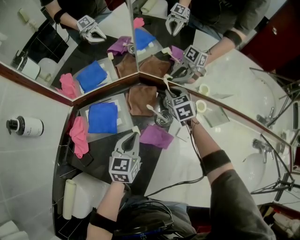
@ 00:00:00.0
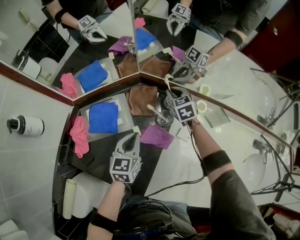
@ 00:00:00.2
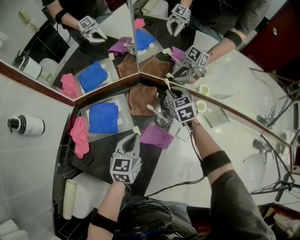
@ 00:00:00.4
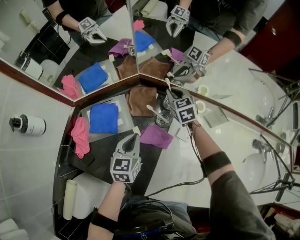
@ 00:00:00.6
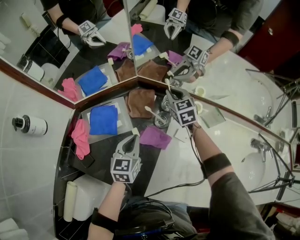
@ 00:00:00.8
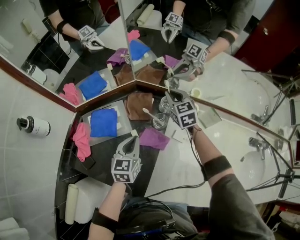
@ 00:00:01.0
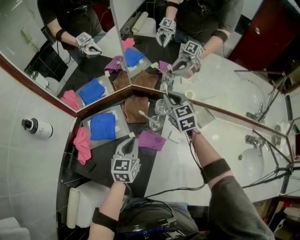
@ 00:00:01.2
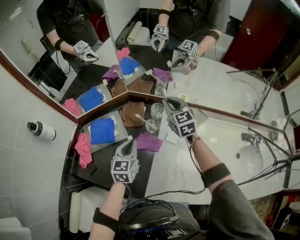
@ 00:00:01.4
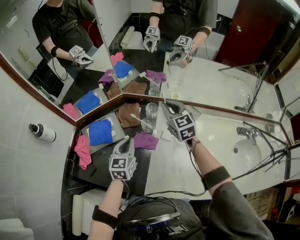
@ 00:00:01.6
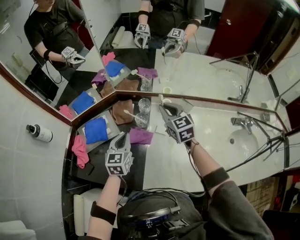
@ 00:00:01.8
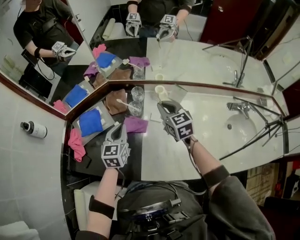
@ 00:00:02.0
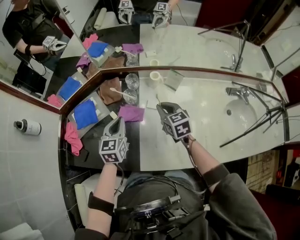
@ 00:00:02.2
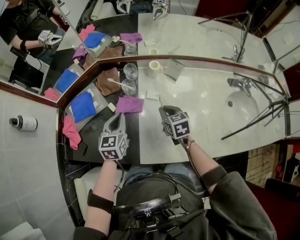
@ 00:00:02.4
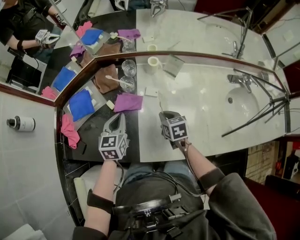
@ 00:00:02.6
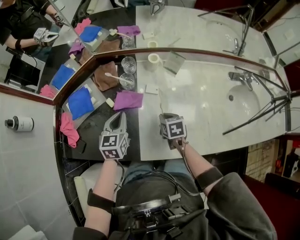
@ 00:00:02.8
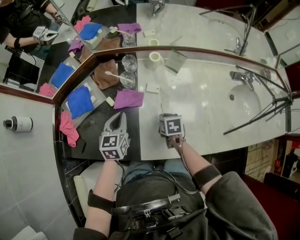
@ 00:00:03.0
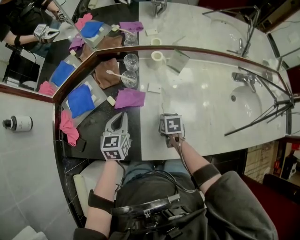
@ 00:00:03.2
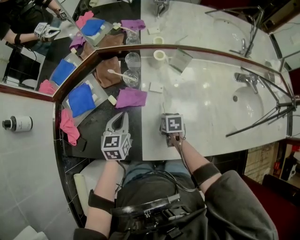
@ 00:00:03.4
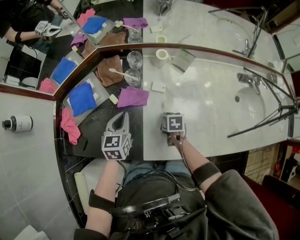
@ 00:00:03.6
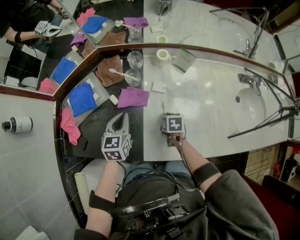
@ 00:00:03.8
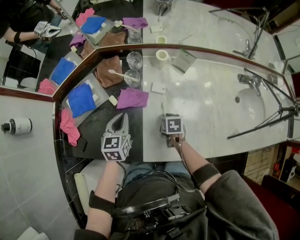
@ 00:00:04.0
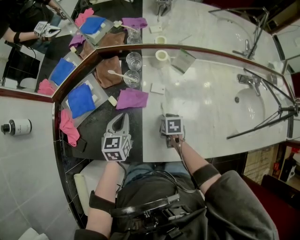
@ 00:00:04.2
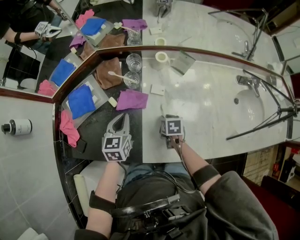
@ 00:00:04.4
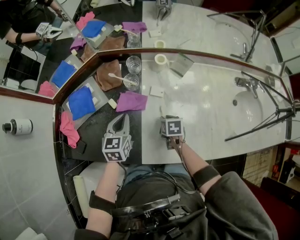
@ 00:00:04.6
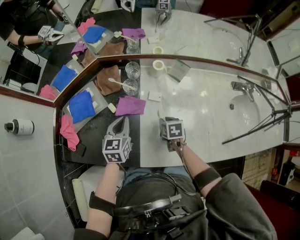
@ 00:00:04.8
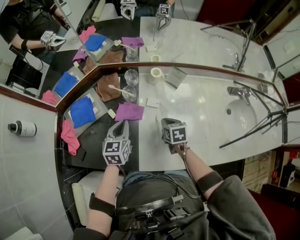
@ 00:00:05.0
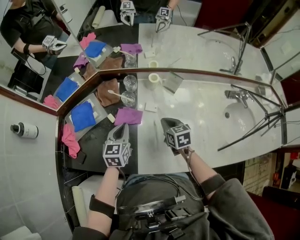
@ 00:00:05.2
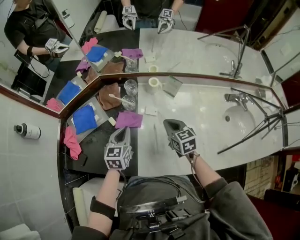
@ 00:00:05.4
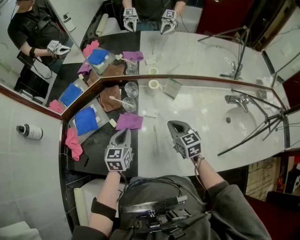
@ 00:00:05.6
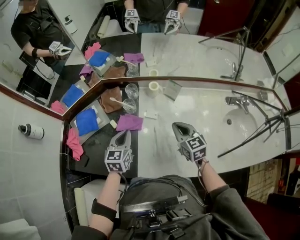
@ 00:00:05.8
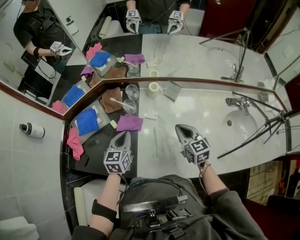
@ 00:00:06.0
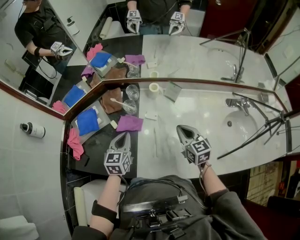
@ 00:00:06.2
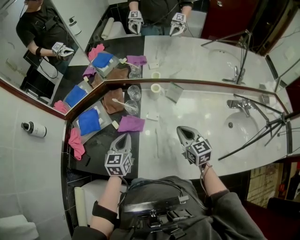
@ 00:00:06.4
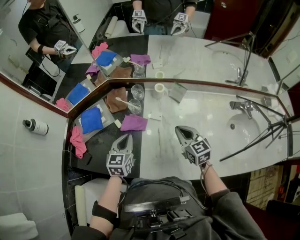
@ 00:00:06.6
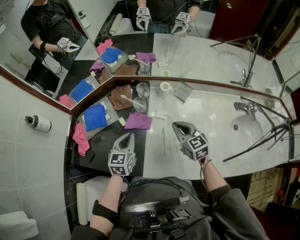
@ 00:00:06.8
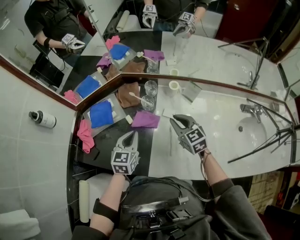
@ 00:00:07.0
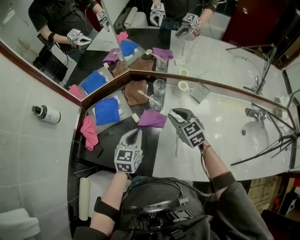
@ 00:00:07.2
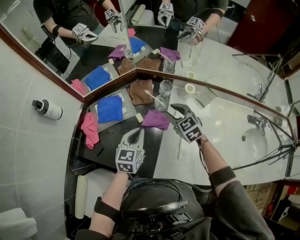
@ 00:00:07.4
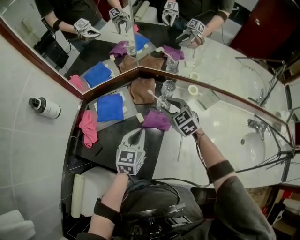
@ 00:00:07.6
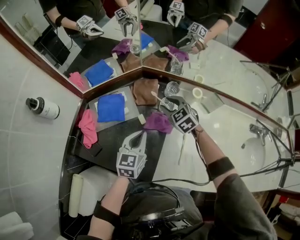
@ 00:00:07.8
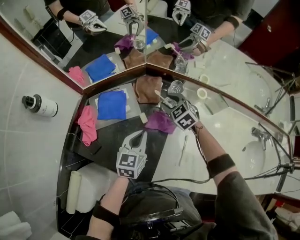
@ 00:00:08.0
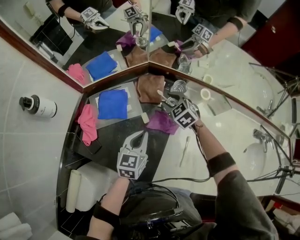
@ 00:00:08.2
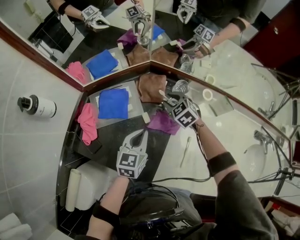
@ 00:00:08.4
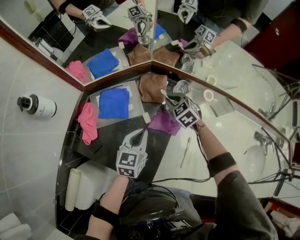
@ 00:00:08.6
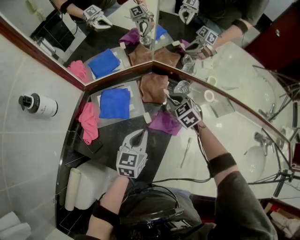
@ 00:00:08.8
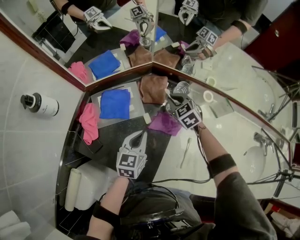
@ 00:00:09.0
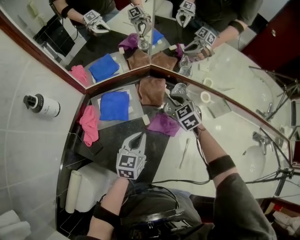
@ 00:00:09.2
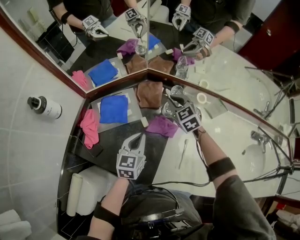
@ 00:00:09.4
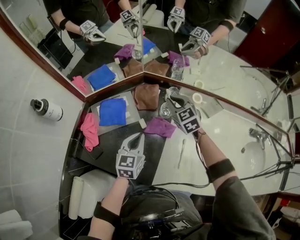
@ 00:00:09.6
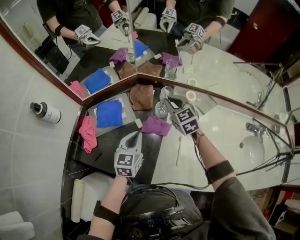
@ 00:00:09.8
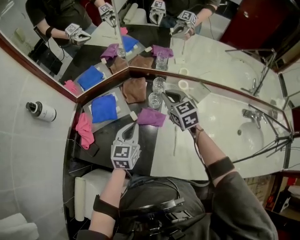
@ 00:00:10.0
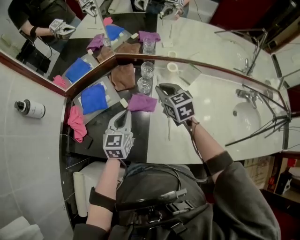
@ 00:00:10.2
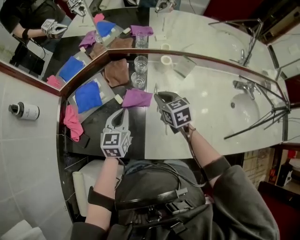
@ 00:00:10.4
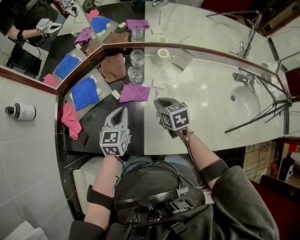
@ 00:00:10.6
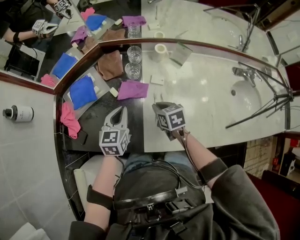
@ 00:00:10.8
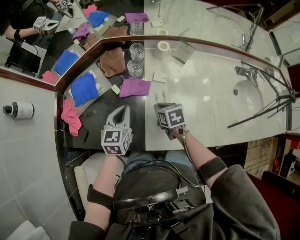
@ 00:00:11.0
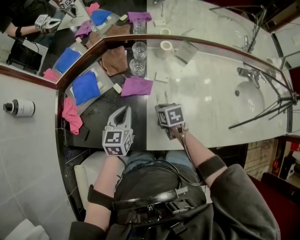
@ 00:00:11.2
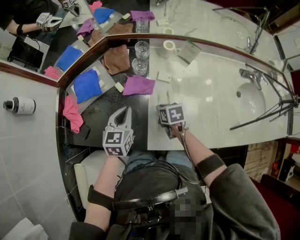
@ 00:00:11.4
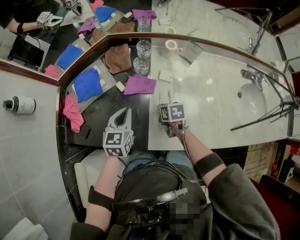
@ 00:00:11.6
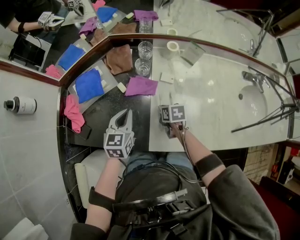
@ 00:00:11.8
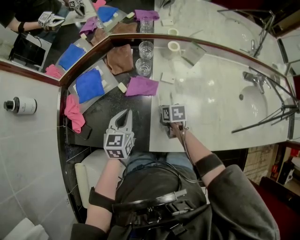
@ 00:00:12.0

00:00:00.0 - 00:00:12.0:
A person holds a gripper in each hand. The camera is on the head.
00:00:00.0 - 00:00:01.6: The right gripper moves upward and backward, about 25 cm, and changes its angle by some 20 degrees. The left gripper moves upward, approximately 5 cm.
00:00:01.6 - 00:00:03.0: The right gripper travels downward and backward by about 40 cm, and angles its fingers downward, by about 40 degrees. Meanwhile the left gripper travels backward and downward by approximately 10 cm.
00:00:03.0 - 00:00:04.4: There are only small adjustments of the grippers.
00:00:04.4 - 00:00:06.0: The right gripper shifts roughly 20 cm upward, tilts its fingers approximately 40 degrees upward, and closes its fingers, while the left gripper heads upward, covering about 5 cm.
00:00:06.0 - 00:00:07.6: The right gripper goes roughly 30 cm to the left and forward, changes its angle by some 40 degrees, and opens its fingers, while the left gripper heads to the left, covering some 10 cm.
00:00:07.6 - 00:00:09.0: The right gripper is displaced forward and downward by about 10 cm, and closes up.
00:00:09.0 - 00:00:10.4: The right gripper moves backward and to the right, about 20 cm, and swivels some 40 degrees. Meanwhile the left gripper changes place by approximately 5 cm.
00:00:10.4 - 00:00:12.0: The right gripper moves downward and backward, roughly 20 cm, and rotates approximately 40 degrees; the left gripper changes place by roughly 5 cm.

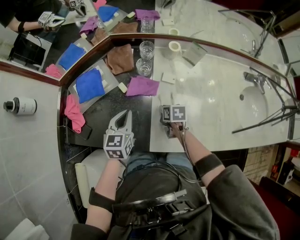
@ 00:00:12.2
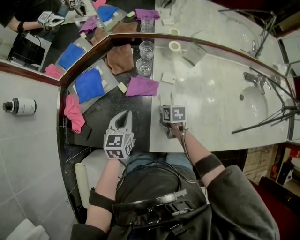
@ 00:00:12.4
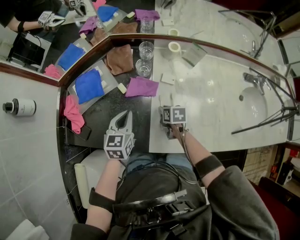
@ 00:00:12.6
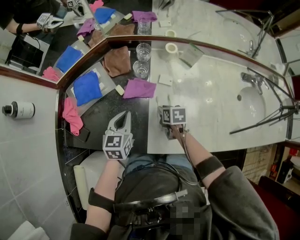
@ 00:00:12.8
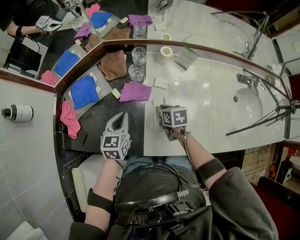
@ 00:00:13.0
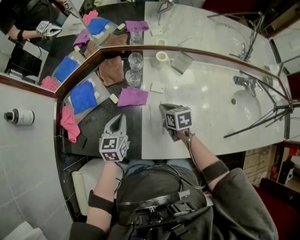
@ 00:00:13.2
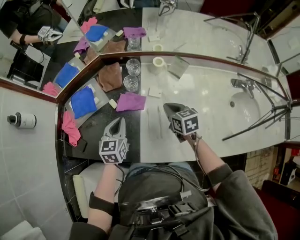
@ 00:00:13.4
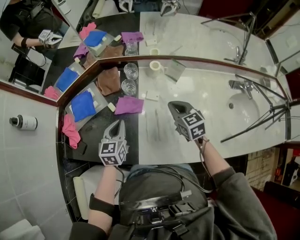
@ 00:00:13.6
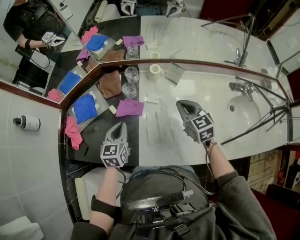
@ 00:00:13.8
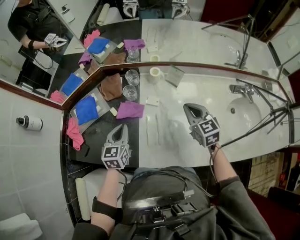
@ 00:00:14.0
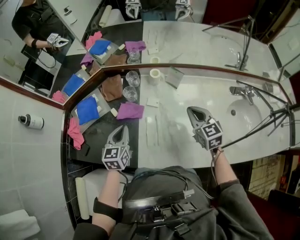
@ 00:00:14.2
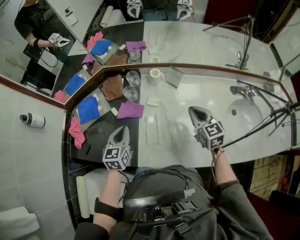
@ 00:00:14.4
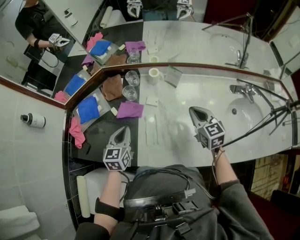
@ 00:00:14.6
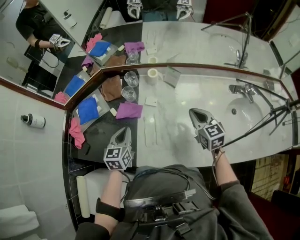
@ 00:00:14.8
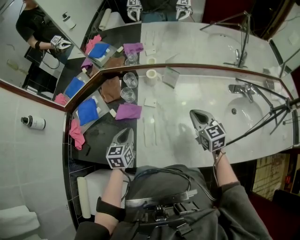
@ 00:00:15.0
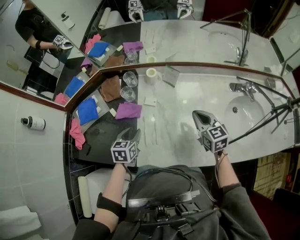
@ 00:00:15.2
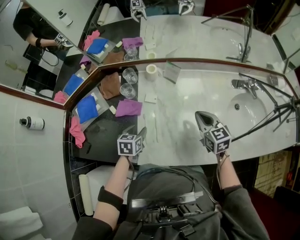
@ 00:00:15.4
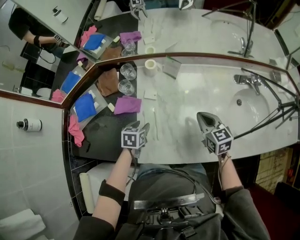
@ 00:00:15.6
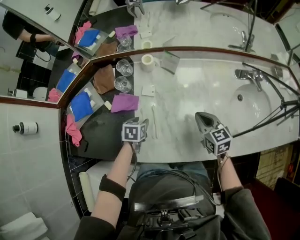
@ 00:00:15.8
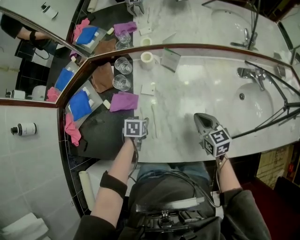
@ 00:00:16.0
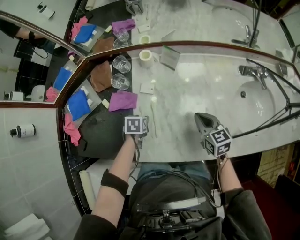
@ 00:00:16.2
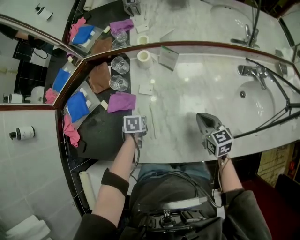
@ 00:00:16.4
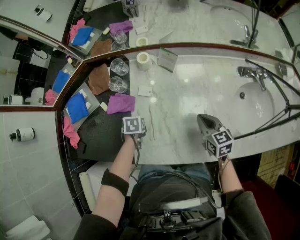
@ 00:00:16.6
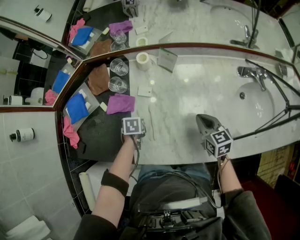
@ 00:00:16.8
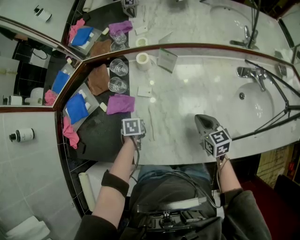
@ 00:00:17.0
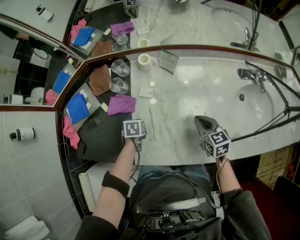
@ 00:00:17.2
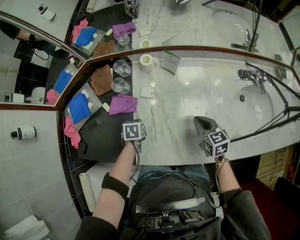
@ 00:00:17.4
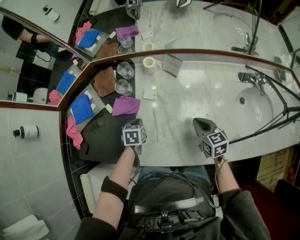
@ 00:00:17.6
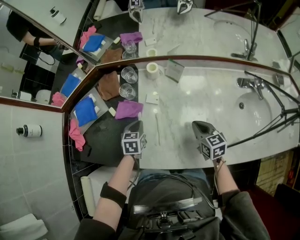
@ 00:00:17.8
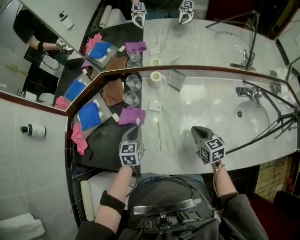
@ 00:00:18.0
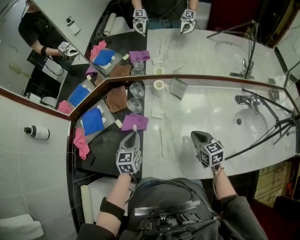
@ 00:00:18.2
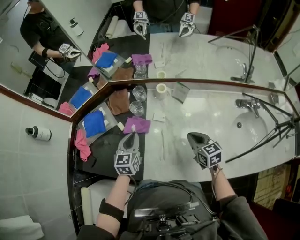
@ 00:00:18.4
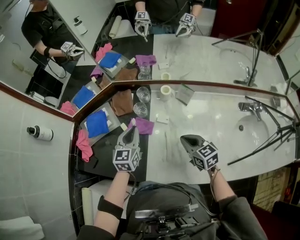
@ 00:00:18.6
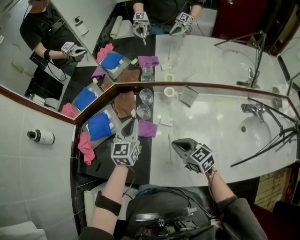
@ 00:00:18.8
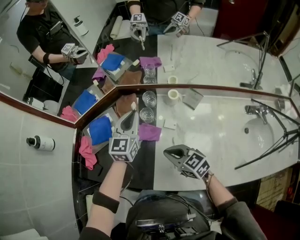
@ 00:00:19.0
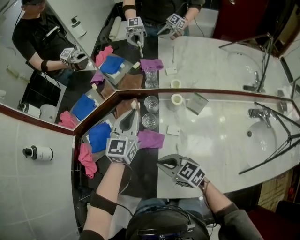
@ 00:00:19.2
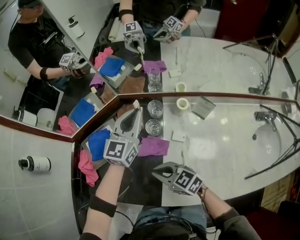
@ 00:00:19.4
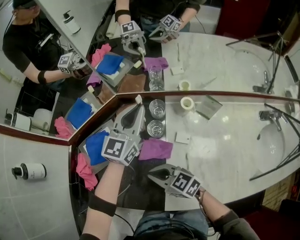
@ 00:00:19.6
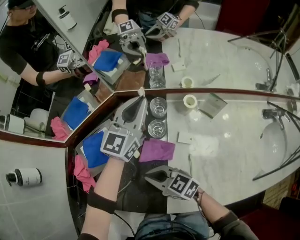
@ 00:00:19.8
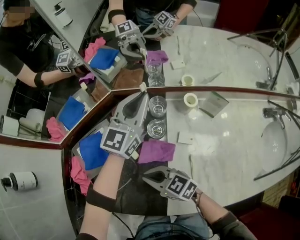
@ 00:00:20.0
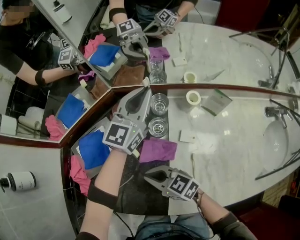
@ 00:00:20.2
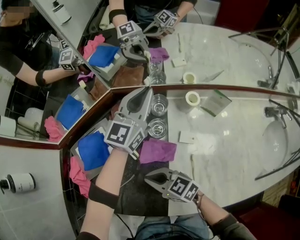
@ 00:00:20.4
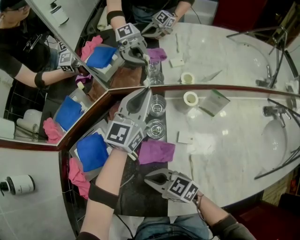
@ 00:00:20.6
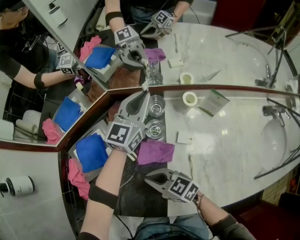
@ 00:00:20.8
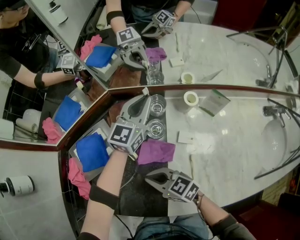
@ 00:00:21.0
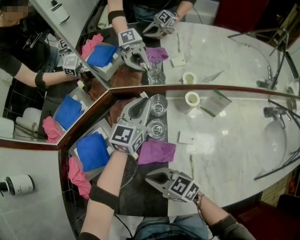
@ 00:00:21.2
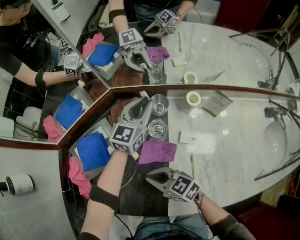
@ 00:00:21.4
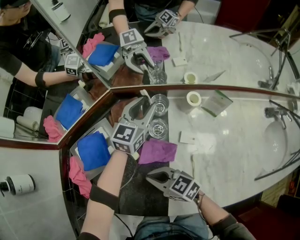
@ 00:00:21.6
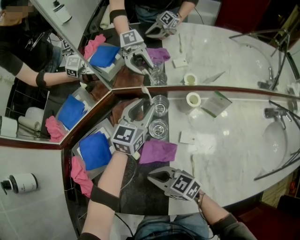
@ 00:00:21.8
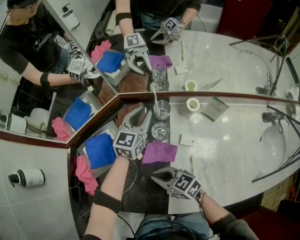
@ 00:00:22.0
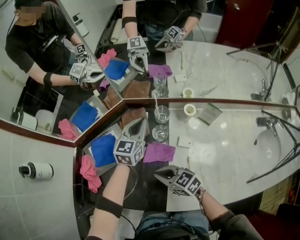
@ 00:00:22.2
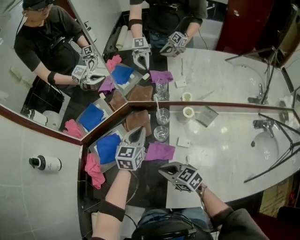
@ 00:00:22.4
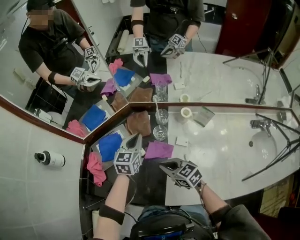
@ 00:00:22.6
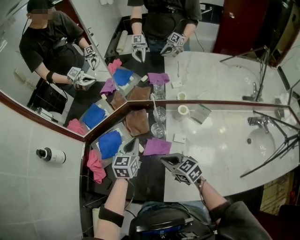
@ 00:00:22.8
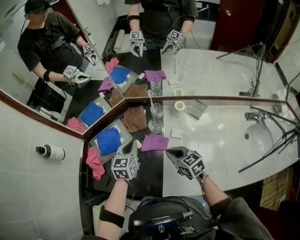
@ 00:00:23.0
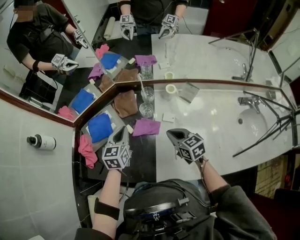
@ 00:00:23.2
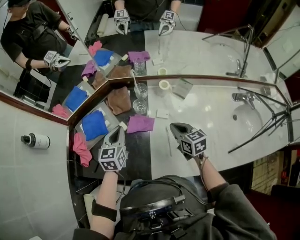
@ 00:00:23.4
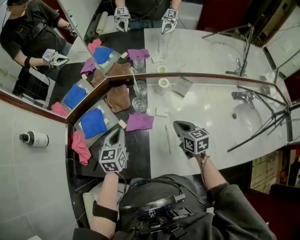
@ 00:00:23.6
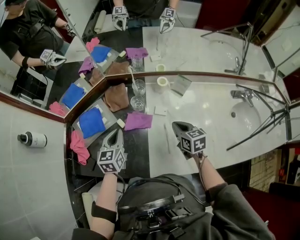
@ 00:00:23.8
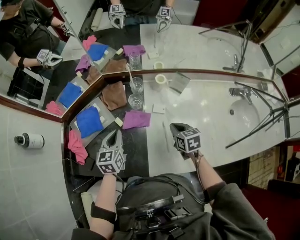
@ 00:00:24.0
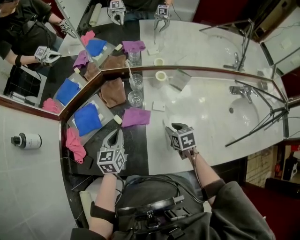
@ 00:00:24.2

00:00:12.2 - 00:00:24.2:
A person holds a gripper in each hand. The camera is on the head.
00:00:12.2 - 00:00:13.8: The left gripper shifts roughly 5 cm to the right; the right gripper travels upward and to the right by about 30 cm, and tilts its fingers roughly 30 degrees upward.
00:00:13.8 - 00:00:15.2: The left gripper moves to the right, roughly 5 cm, and opens its fingers, while the right gripper goes approximately 10 cm to the right and backward.
00:00:15.2 - 00:00:16.6: Both grippers move downward, roughly 10 cm. The left gripper points its fingers approximately 30 degrees further downward.
00:00:16.6 - 00:00:18.2: The left gripper is displaced upward by about 15 cm, tilts its fingers some 50 degrees upward, and closes its fingers; the right gripper ends up approximately 5 cm from where it was.
00:00:18.2 - 00:00:19.8: The right gripper moves to the left, about 35 cm, and rotates about 40 degrees. Meanwhile the left gripper travels forward by about 25 cm, and angles its fingers upward, by approximately 30 degrees.
00:00:19.8 - 00:00:21.2: The left gripper is displaced downward by approximately 10 cm.
00:00:21.2 - 00:00:22.6: The left gripper heads to the left, backward and upward, covering roughly 15 cm, rotates approximately 20 degrees, and opens, then closes again; the right gripper goes roughly 10 cm upward and to the right.
00:00:22.6 - 00:00:24.2: The right gripper goes roughly 20 cm to the right and downward, rotates about 40 degrees, and opens up. The left gripper moves backward, roughly 15 cm.
